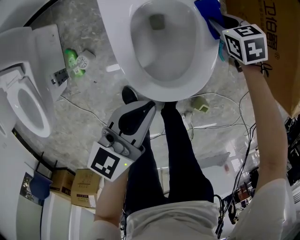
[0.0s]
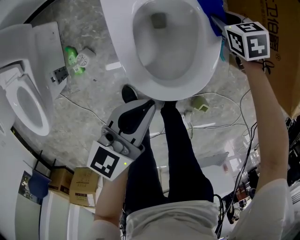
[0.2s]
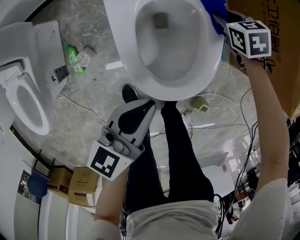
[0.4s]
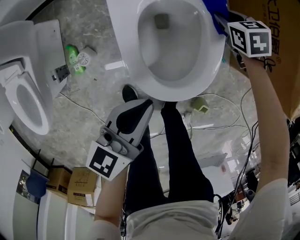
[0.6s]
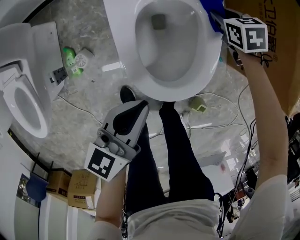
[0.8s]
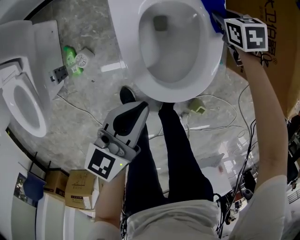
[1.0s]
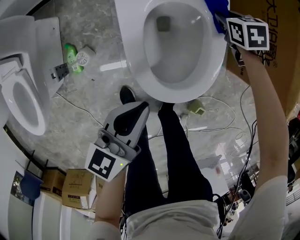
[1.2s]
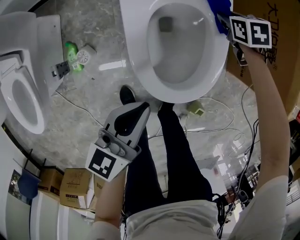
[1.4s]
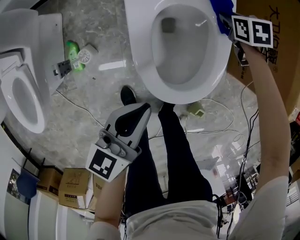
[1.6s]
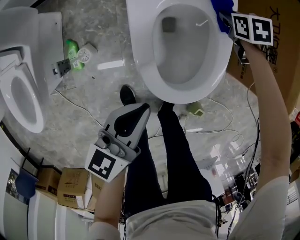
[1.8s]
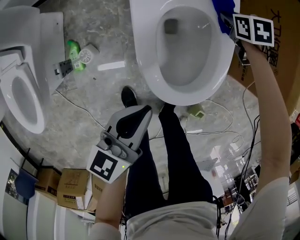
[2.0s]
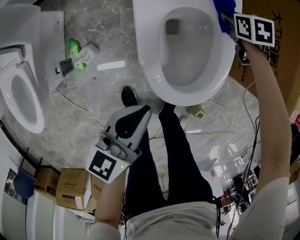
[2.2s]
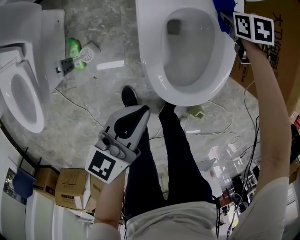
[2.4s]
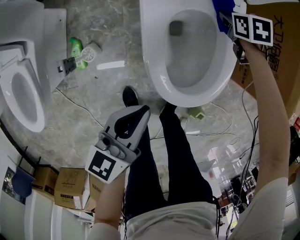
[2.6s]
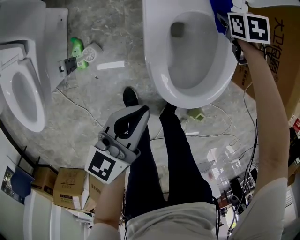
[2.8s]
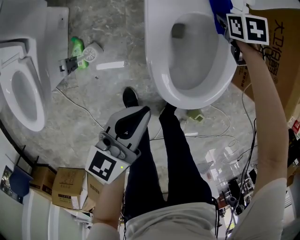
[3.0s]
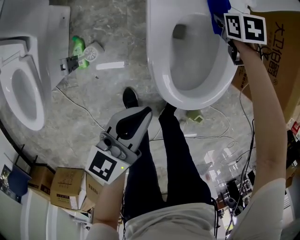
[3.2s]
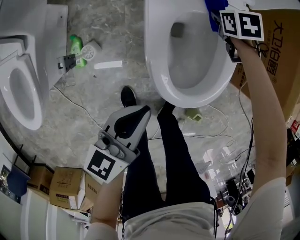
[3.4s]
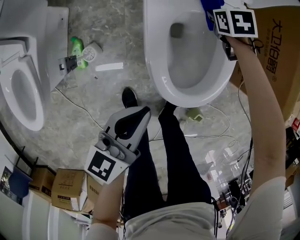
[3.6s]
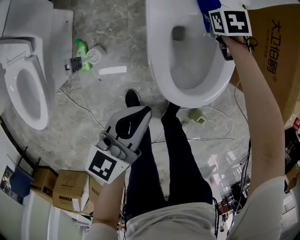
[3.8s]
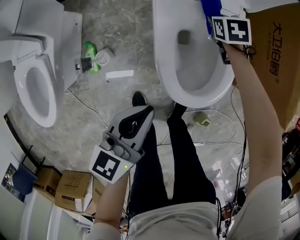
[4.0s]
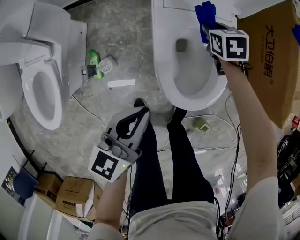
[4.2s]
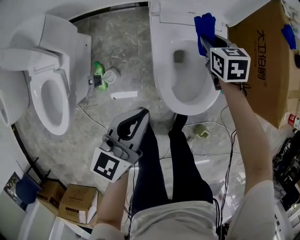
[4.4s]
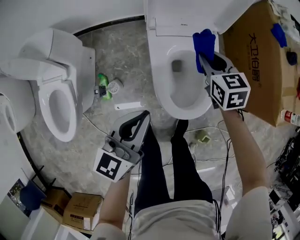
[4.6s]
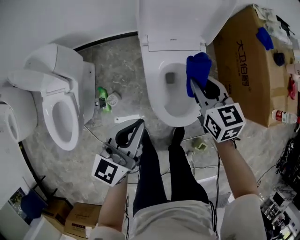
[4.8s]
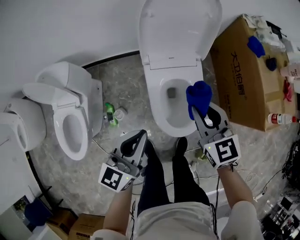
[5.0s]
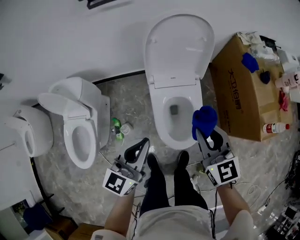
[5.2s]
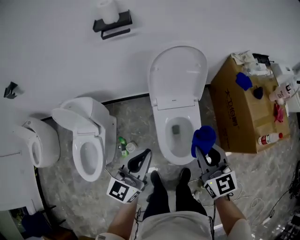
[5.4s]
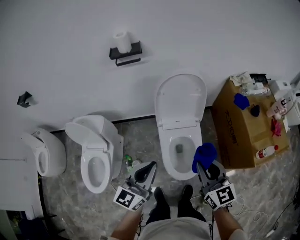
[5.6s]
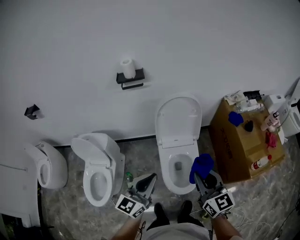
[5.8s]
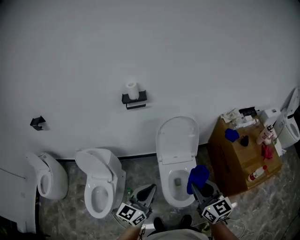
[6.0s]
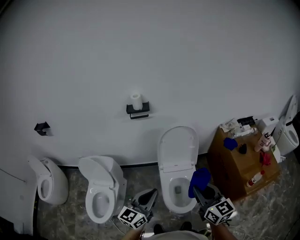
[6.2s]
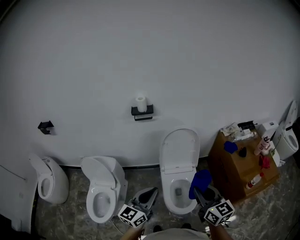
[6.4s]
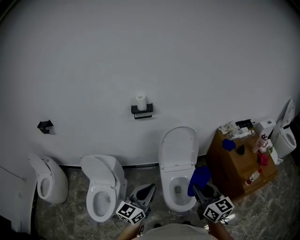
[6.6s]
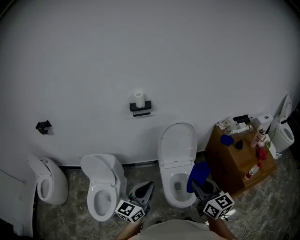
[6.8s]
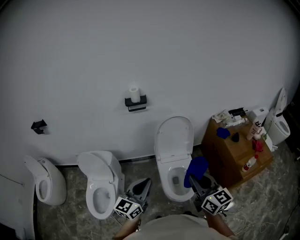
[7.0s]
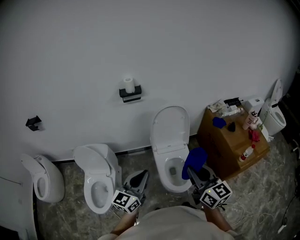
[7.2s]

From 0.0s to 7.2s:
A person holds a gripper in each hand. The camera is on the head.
From 0.0s to 1.4s: The right gripper moves approximately 5 cm, while the left gripper is displaced to the left by roughly 5 cm.
From 1.4s to 2.8s: Both grippers move to the left, about 5 cm.
From 2.8s to 4.4s: The grippers both shift upward by approximately 15 cm. The right gripper turns by about 20 degrees.
From 4.4s to 5.8s: The right gripper is displaced upward and backward by about 60 cm, and angles its fingers upward, by some 40 degrees. The left gripper moves upward, approximately 35 cm, and turns by roughly 20 degrees.
From 5.8s to 7.2s: The right gripper goes about 15 cm upward and backward. The left gripper moves upward, backward and to the left, about 10 cm.

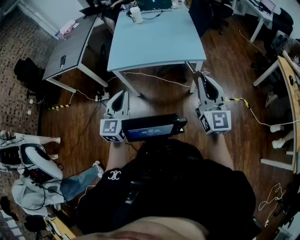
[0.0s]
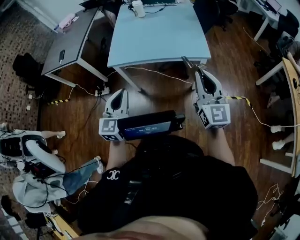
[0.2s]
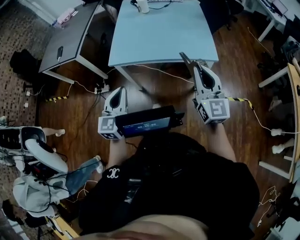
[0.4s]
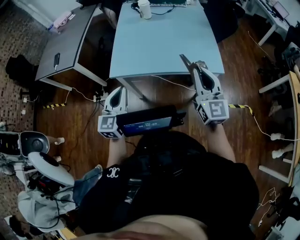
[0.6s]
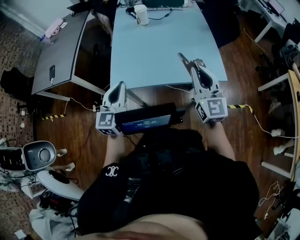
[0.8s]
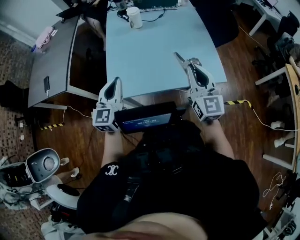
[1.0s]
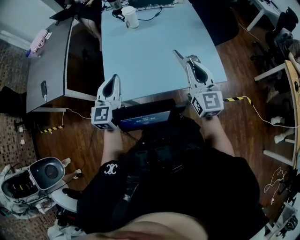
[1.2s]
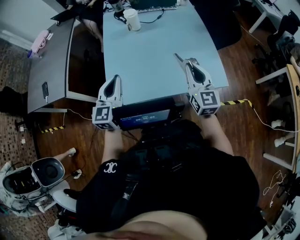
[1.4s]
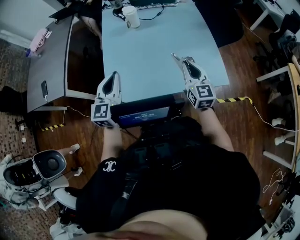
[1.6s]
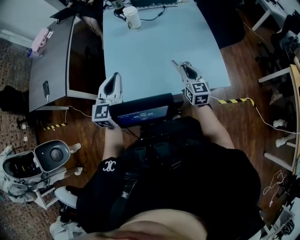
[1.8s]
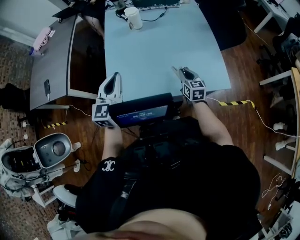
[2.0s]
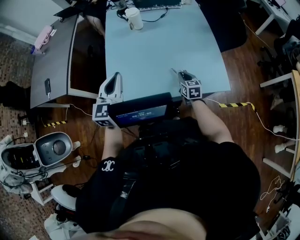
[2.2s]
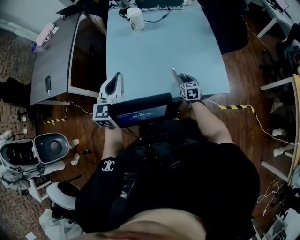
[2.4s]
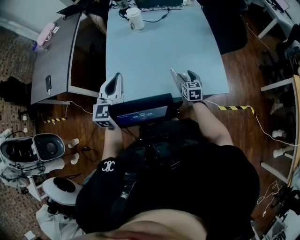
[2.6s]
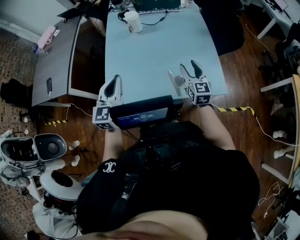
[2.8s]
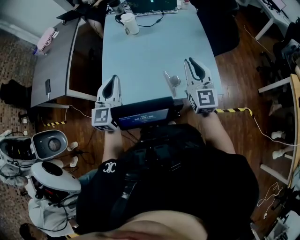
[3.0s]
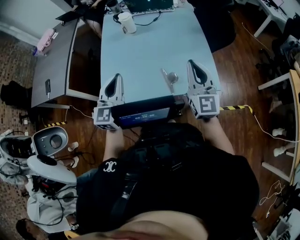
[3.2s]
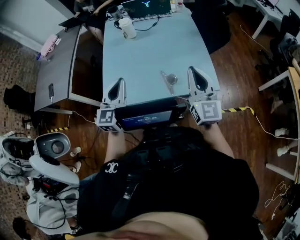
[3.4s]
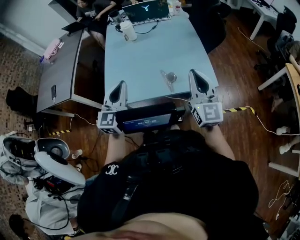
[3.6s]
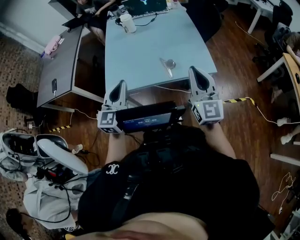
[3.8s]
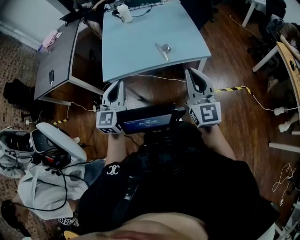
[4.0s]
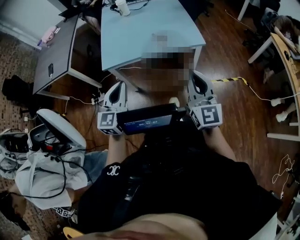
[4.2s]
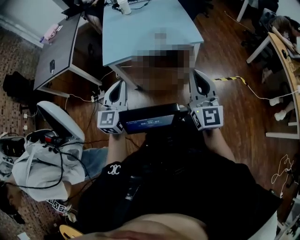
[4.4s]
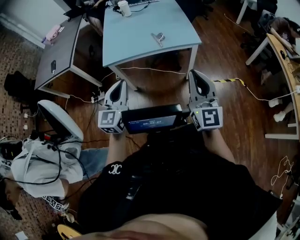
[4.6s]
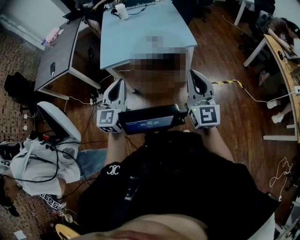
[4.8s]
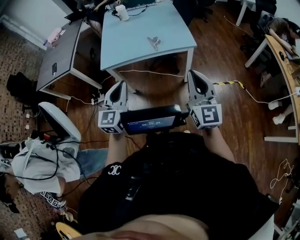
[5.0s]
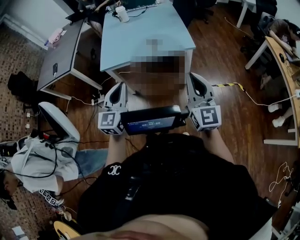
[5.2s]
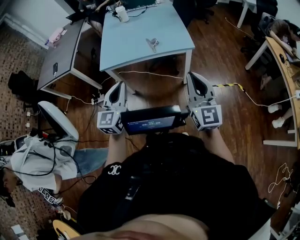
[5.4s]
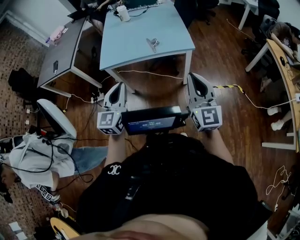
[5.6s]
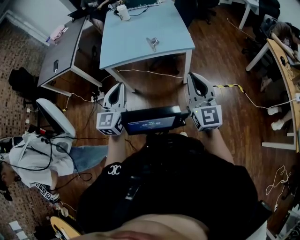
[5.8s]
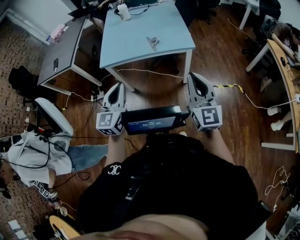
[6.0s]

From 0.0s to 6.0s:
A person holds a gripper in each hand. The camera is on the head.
From 0.0s to 1.6s: Both grippers are carried forward, roughly 50 cm.
From 1.6s to 3.0s: The two grippers go approximately 5 cm to the right. The right gripper reaches approximately 20 cm downward, then returns, and opens, then closes once more.
From 3.0s to 4.4s: The grippers both shift backward by roughly 40 cm.
From 4.4s to 6.0s: The grippers both shift to the right by some 10 cm.

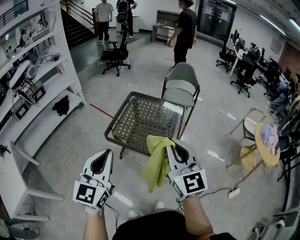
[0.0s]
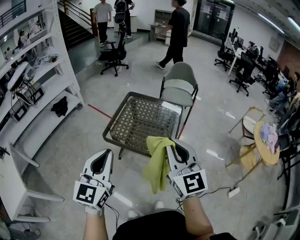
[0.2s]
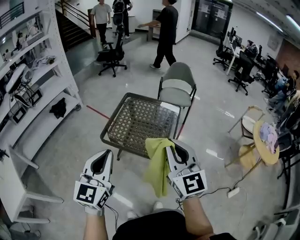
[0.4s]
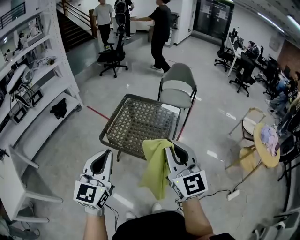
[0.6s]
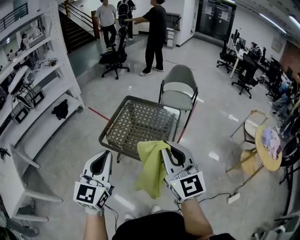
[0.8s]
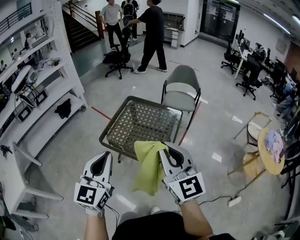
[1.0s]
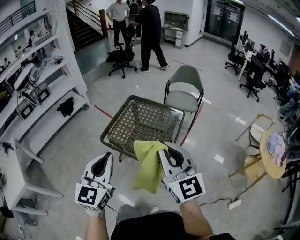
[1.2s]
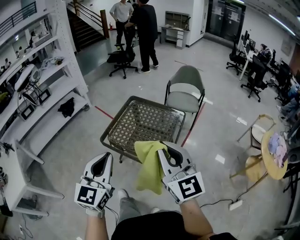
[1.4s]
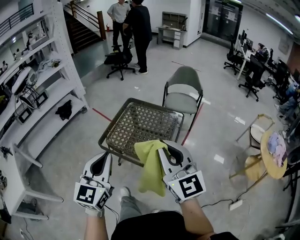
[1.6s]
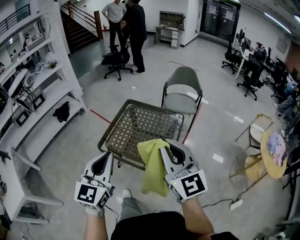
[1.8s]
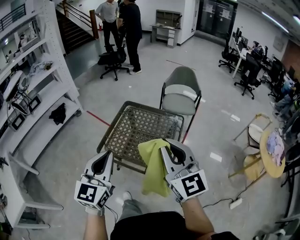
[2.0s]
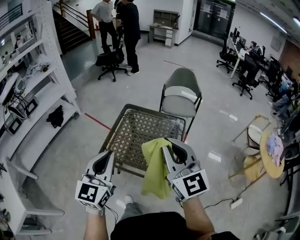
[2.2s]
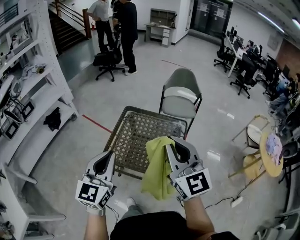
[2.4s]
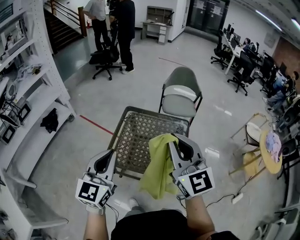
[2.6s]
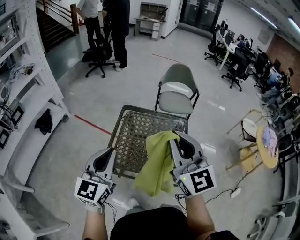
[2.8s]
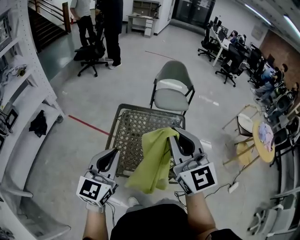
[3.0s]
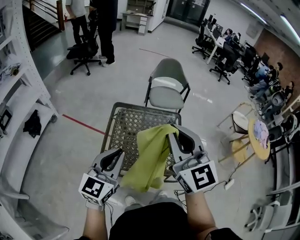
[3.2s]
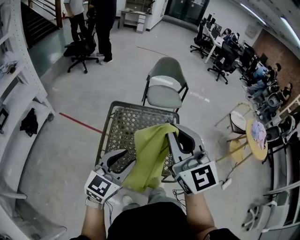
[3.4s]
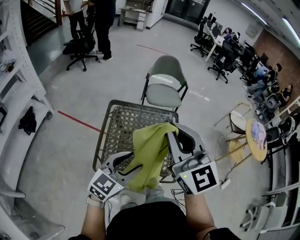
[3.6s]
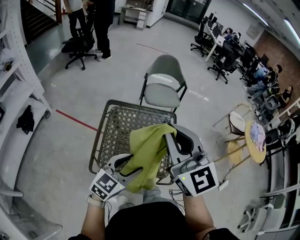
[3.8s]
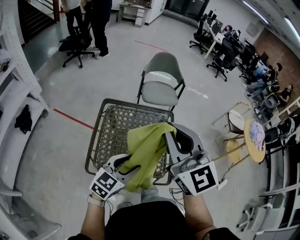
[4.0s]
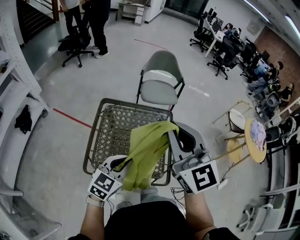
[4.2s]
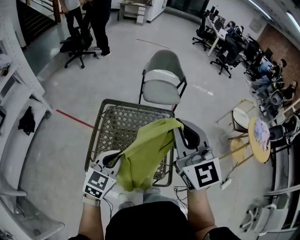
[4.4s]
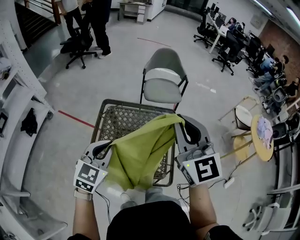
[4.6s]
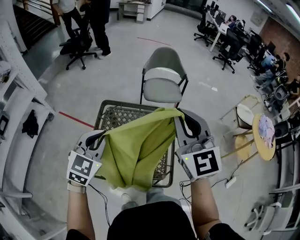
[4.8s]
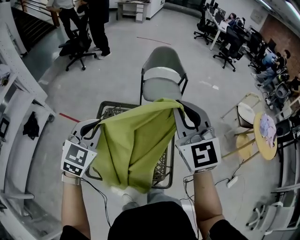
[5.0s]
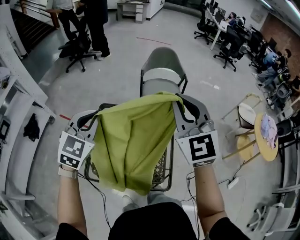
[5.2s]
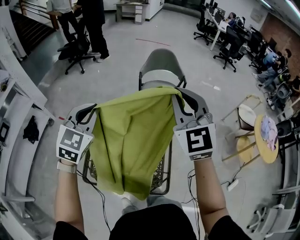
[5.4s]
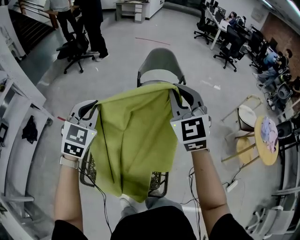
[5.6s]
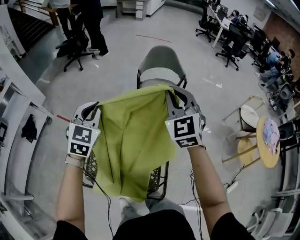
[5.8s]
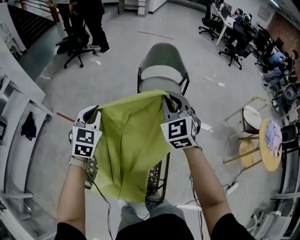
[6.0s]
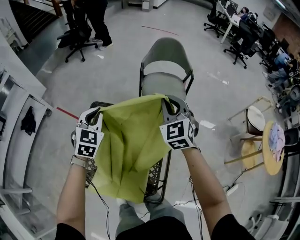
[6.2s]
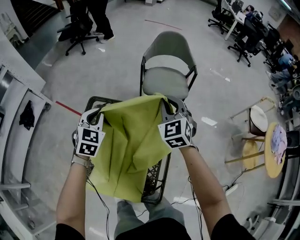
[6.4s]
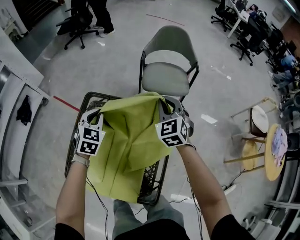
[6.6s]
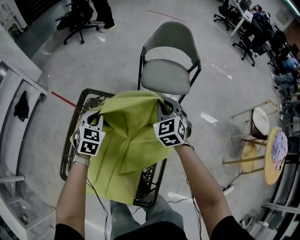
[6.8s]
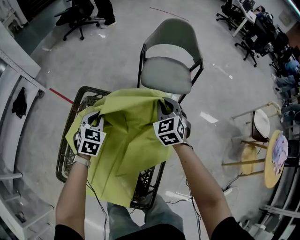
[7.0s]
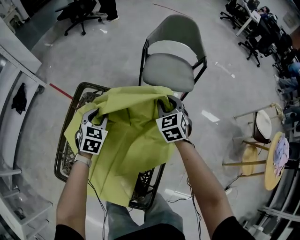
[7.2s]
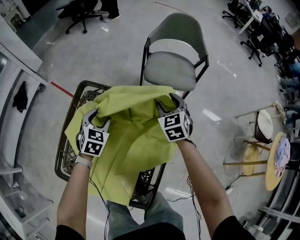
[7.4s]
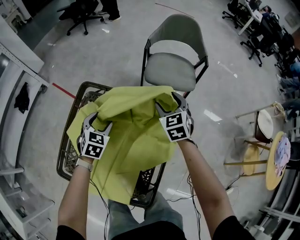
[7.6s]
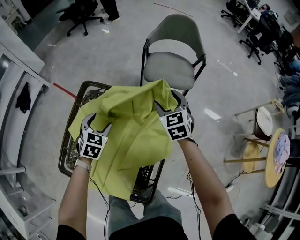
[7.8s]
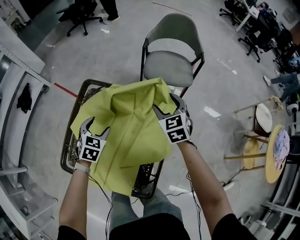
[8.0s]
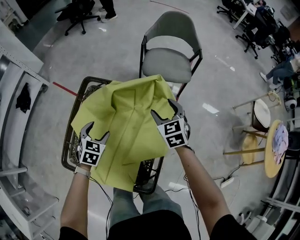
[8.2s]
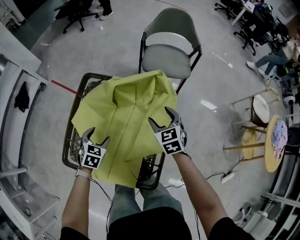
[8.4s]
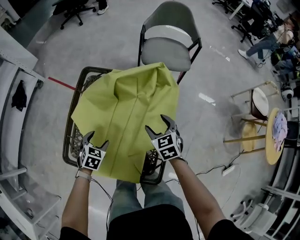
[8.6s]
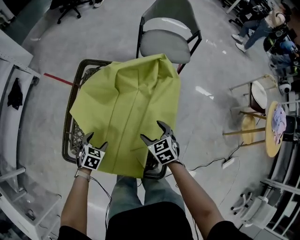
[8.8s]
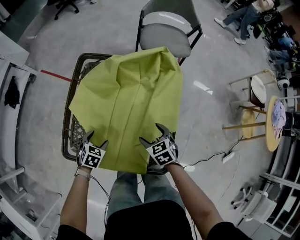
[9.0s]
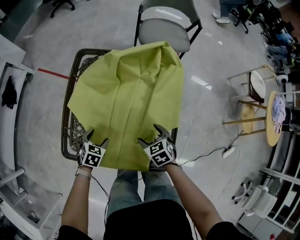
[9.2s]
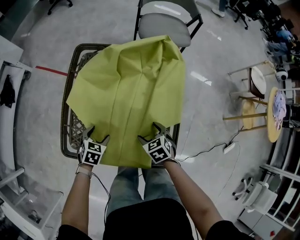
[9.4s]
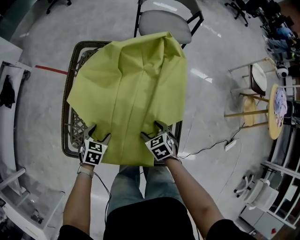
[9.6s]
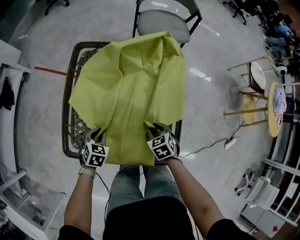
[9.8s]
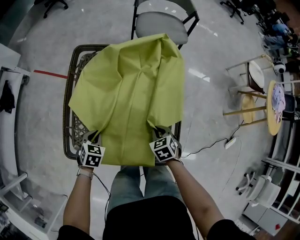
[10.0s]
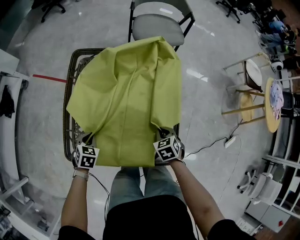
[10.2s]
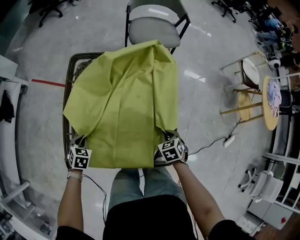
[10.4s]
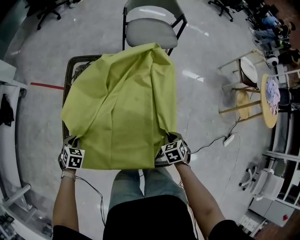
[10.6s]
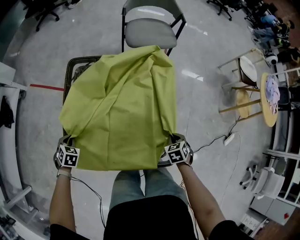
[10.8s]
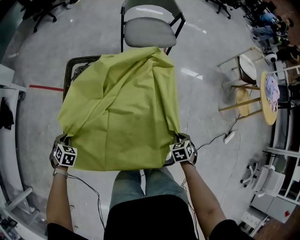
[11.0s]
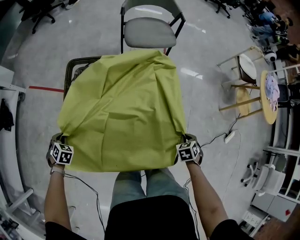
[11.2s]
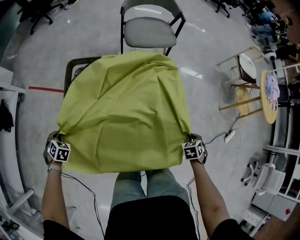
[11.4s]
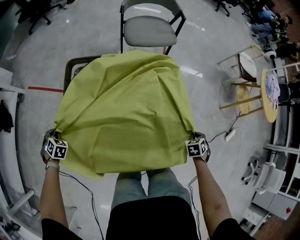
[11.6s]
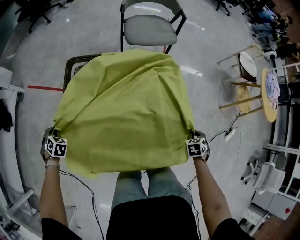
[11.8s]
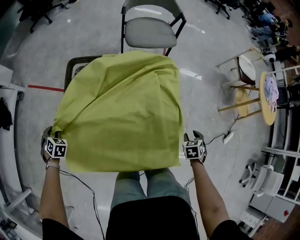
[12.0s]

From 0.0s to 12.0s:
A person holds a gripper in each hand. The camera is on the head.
From 0.0s to 1.6s: The two grippers go about 10 cm to the right and forward.
From 1.6s to 3.0s: Both grippers move forward and to the left, roughly 25 cm. The left gripper turns by approximately 20 degrees.
From 3.0s to 4.4s: The left gripper is displaced downward, to the right and forward by roughly 15 cm, swivels approximately 20 degrees, and opens, then closes once more; the right gripper moves forward and to the right, roughly 10 cm.
From 4.4s to 6.0s: The right gripper travels forward and downward by approximately 30 cm, and swivels approximately 20 degrees; the left gripper goes about 30 cm forward, and rotates some 30 degrees.
From 6.0s to 7.6s: The two grippers go roughly 25 cm downward. The right gripper turns by about 20 degrees, and opens. Meanwhile the left gripper swivels about 30 degrees, and opens its fingers.
From 7.6s to 9.0s: The right gripper shifts approximately 35 cm backward, to the left and downward, and changes its angle by roughly 30 degrees; the left gripper shifts roughly 30 cm backward, downward and to the left, and changes its angle by some 20 degrees.
From 9.0s to 10.4s: The left gripper goes roughly 10 cm to the left, and closes up. Meanwhile the right gripper goes approximately 10 cm to the right and backward, swivels approximately 20 degrees, and closes its fingers.
From 10.4s to 12.0s: The right gripper heads to the right, covering approximately 15 cm, and opens its fingers; the left gripper heads to the left and forward, covering roughly 20 cm, and changes its angle by roughly 20 degrees.
